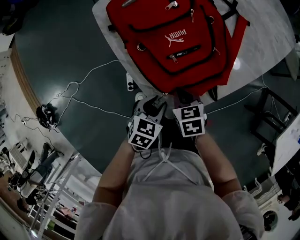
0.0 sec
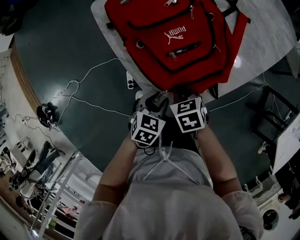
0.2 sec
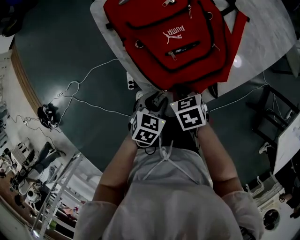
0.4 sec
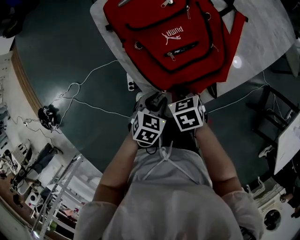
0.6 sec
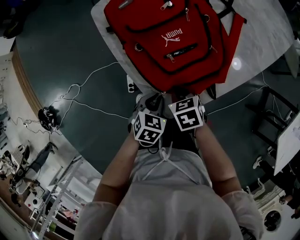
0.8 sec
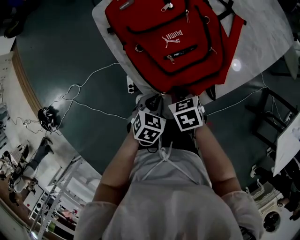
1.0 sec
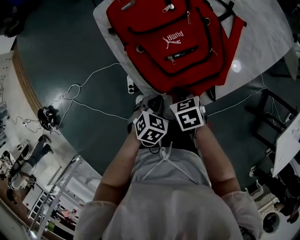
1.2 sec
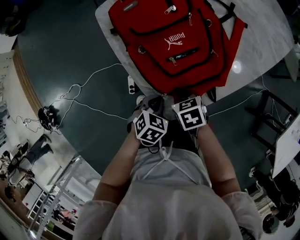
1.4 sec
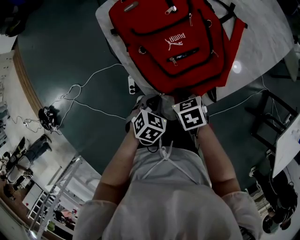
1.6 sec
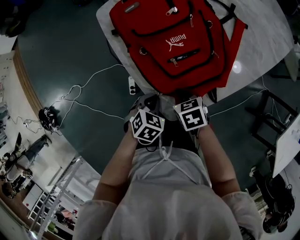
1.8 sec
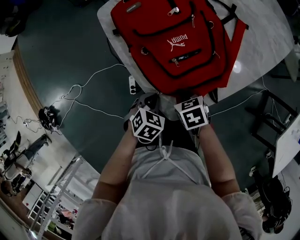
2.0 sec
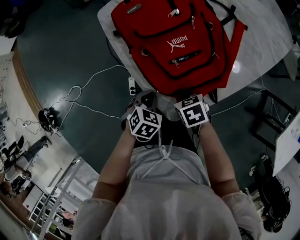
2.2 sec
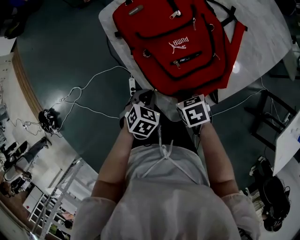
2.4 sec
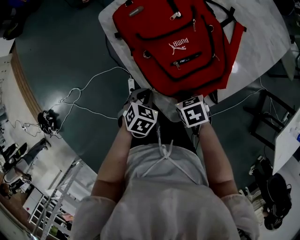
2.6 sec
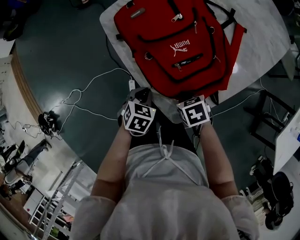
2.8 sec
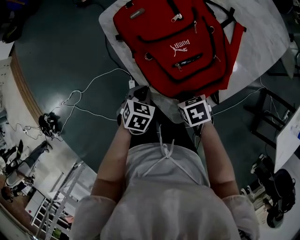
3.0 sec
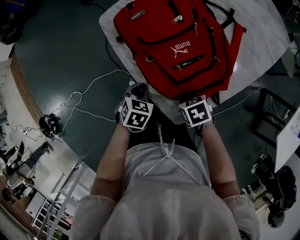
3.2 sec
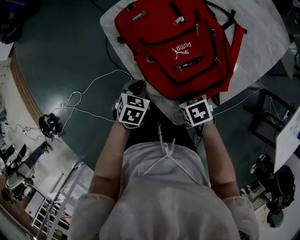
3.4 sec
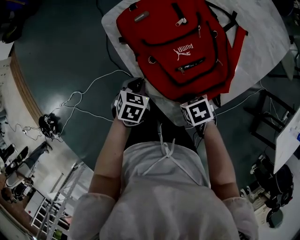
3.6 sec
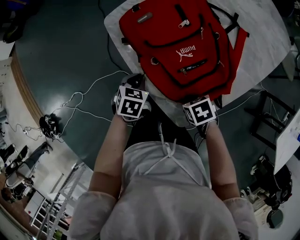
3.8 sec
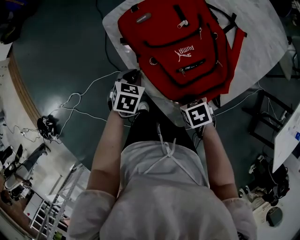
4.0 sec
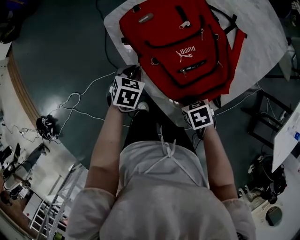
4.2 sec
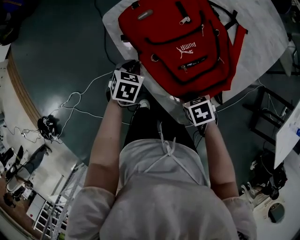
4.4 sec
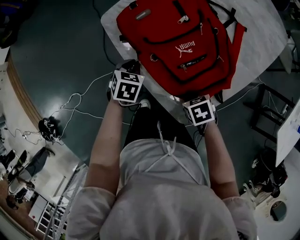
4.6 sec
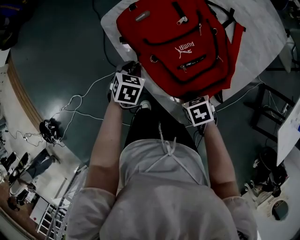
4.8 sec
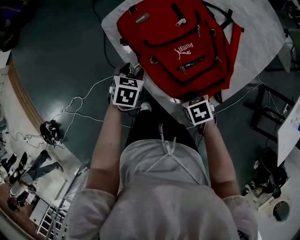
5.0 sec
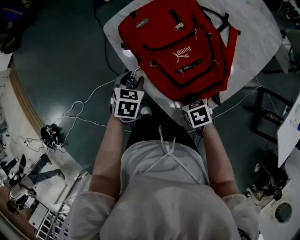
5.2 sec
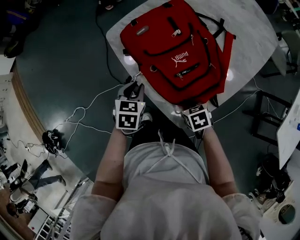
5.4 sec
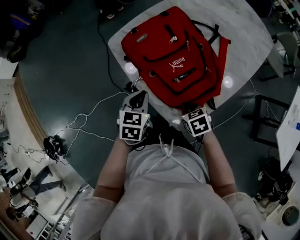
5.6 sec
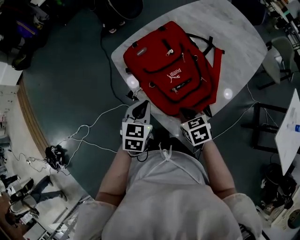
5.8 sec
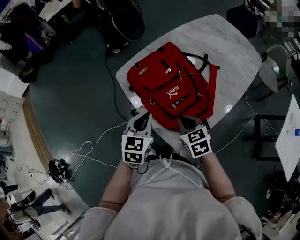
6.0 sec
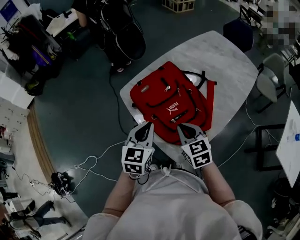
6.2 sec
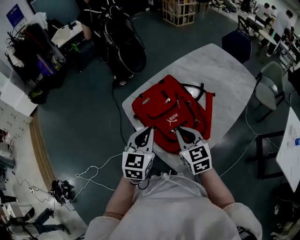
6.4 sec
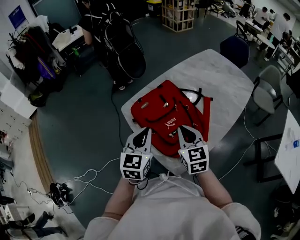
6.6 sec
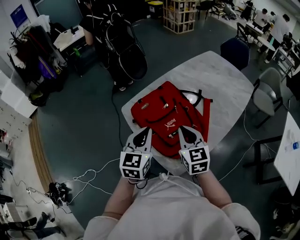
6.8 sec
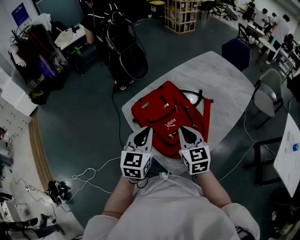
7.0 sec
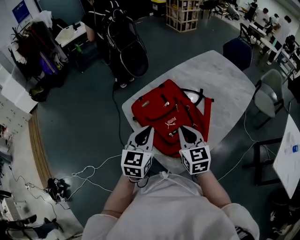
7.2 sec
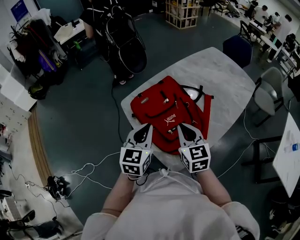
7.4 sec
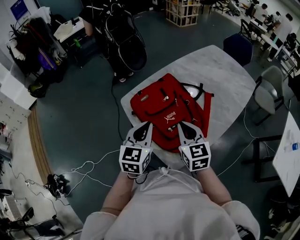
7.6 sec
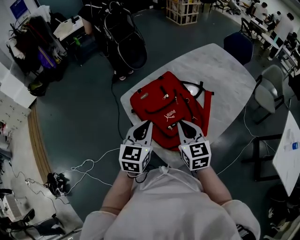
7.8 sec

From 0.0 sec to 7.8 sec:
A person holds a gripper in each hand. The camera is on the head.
From 0.0 sec to 1.6 sec: The left gripper closes up.
From 1.6 sec to 3.2 sec: The left gripper moves forward and to the left, some 10 cm.
From 3.2 sec to 4.6 sec: The left gripper ends up approximately 10 cm from where it was.
From 4.6 sec to 6.2 sec: Both grippers travel together upward, roughly 25 cm. The right gripper points its fingers approximately 40 degrees further upward; the left gripper tips its fingers upward by some 30 degrees, and opens, then closes again.
From 6.2 sec to 7.8 sec: The right gripper heads upward, covering about 5 cm.

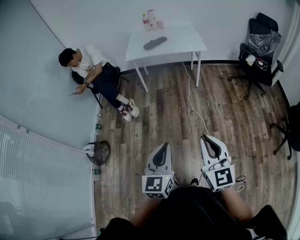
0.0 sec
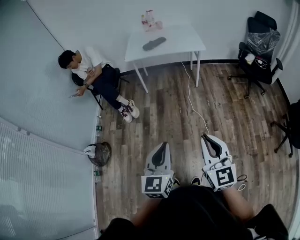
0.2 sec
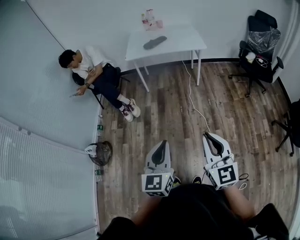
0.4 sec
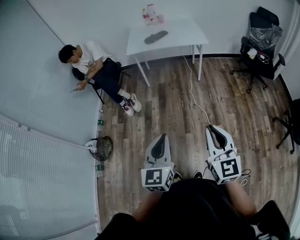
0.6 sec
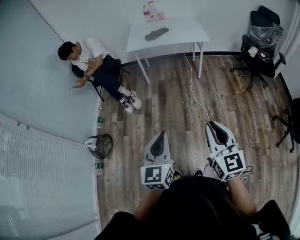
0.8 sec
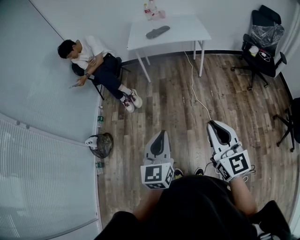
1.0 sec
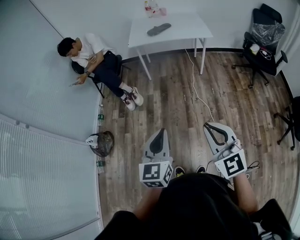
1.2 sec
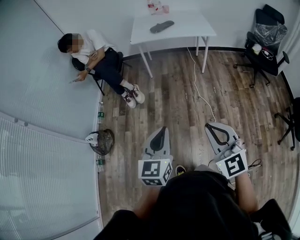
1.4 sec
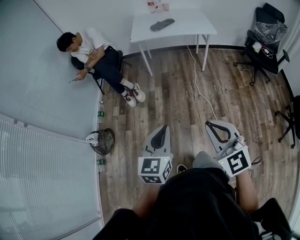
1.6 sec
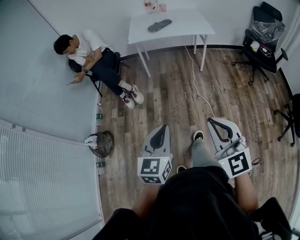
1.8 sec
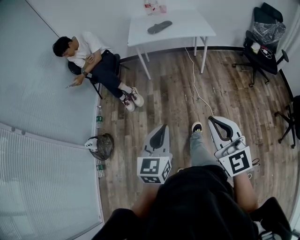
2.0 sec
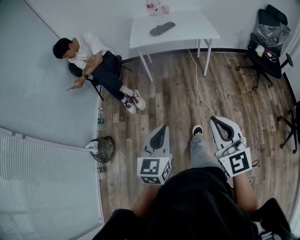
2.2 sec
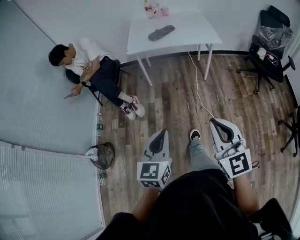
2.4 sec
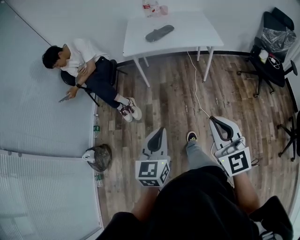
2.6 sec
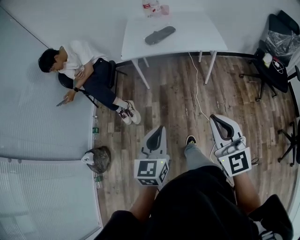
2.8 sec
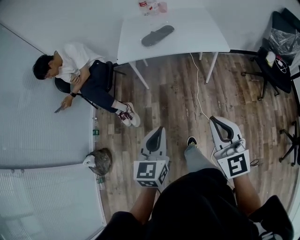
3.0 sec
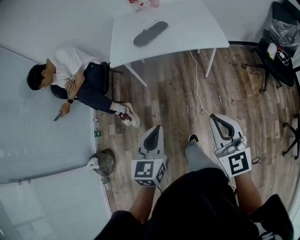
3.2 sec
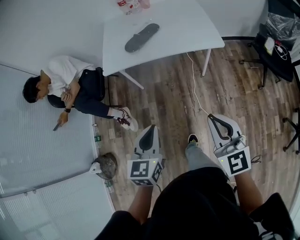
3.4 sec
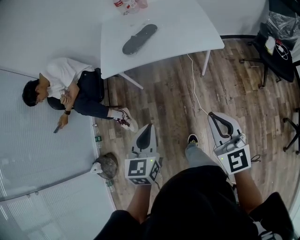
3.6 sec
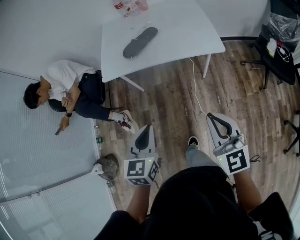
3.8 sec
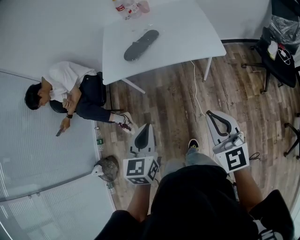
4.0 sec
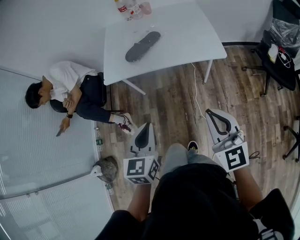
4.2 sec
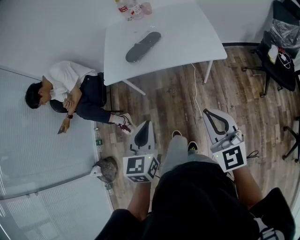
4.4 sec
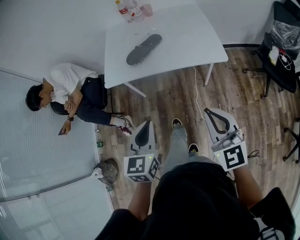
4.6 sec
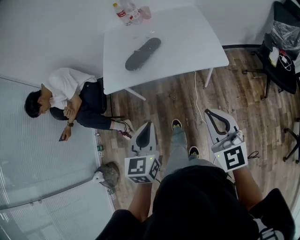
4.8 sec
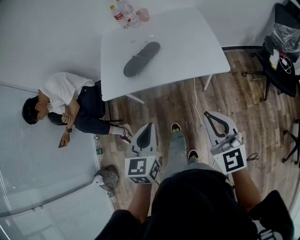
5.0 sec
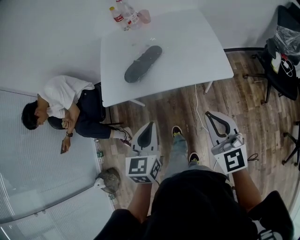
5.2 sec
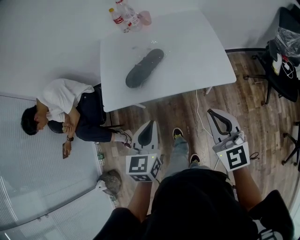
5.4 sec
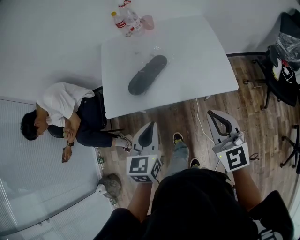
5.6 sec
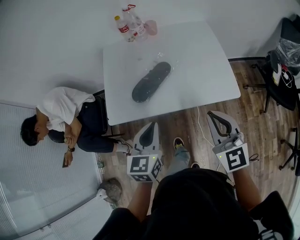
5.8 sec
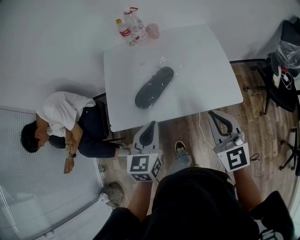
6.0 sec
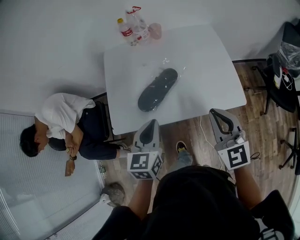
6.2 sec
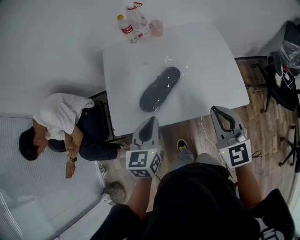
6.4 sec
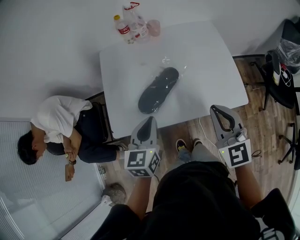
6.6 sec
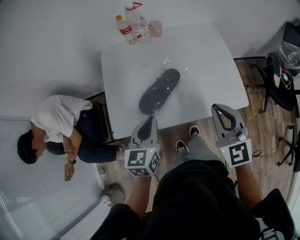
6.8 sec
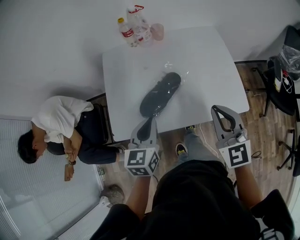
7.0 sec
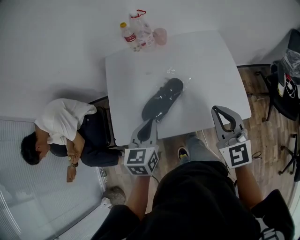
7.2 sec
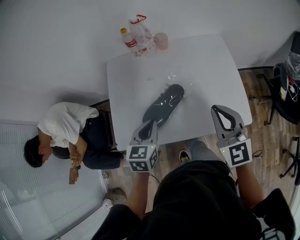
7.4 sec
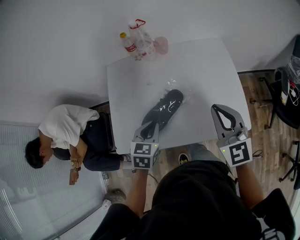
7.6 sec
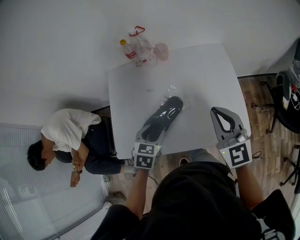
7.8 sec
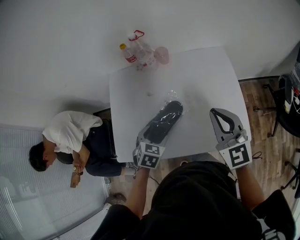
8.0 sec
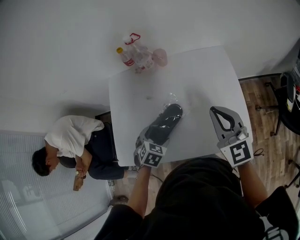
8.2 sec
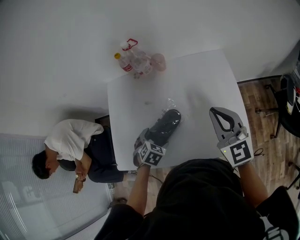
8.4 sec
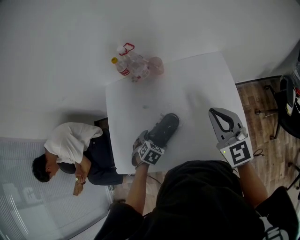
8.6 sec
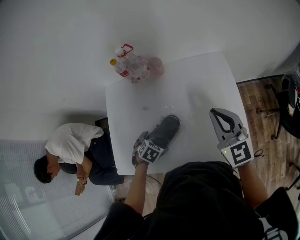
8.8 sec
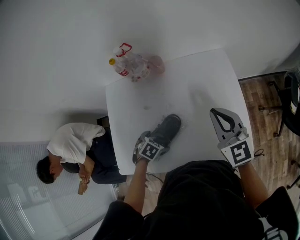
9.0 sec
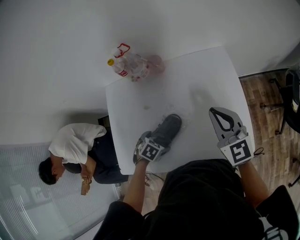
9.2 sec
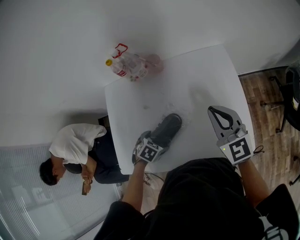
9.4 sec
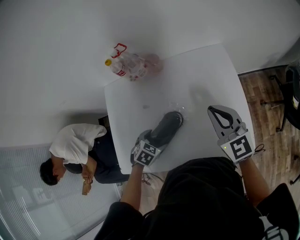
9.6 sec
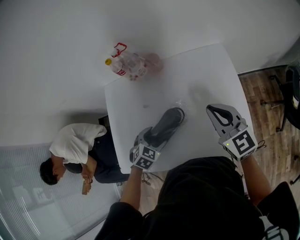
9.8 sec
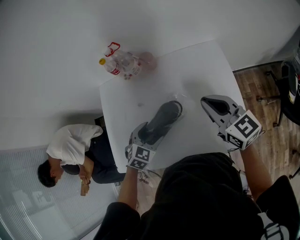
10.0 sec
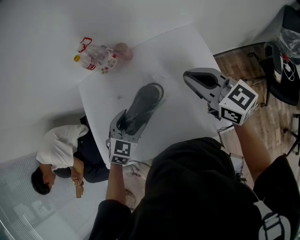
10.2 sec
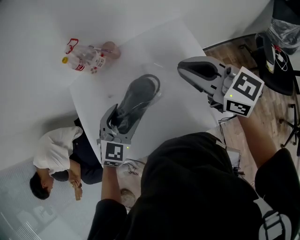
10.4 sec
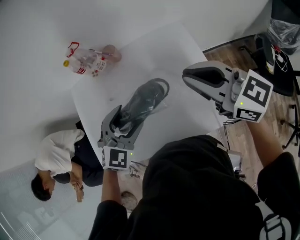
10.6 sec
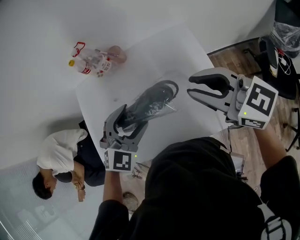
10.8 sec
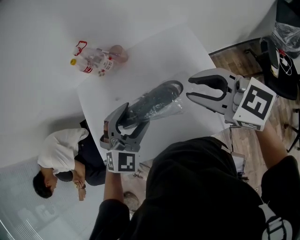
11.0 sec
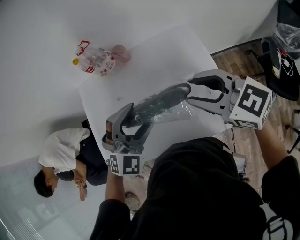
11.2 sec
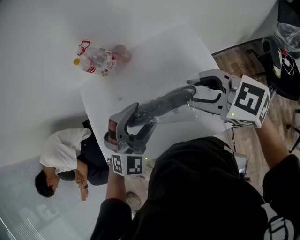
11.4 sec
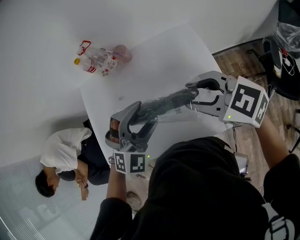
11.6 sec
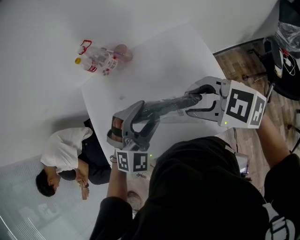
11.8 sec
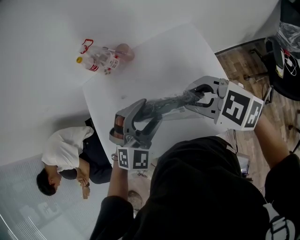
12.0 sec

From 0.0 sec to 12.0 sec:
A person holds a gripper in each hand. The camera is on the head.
From 0.0 sec to 1.6 sec: The two grippers go approximately 10 cm to the left. The right gripper turns by approximately 30 degrees.
From 1.6 sec to 3.0 sec: The two grippers go about 40 cm forward.
From 3.0 sec to 4.4 sec: The left gripper goes about 20 cm forward. The right gripper shifts some 20 cm forward and to the right.
From 4.4 sec to 6.0 sec: Both grippers move forward, about 30 cm.
From 6.0 sec to 7.6 sec: The right gripper moves forward, roughly 20 cm. Meanwhile the left gripper travels forward and downward by about 20 cm, and swivels approximately 20 degrees.
From 7.6 sec to 9.0 sec: The left gripper is displaced downward by approximately 15 cm, angles its fingers downward, by approximately 40 degrees, and opens up. Meanwhile the right gripper changes place by about 15 cm.
From 9.0 sec to 10.4 sec: The left gripper is displaced upward by approximately 20 cm, and points its fingers approximately 40 degrees further upward; the right gripper is displaced upward by approximately 5 cm, and rotates some 30 degrees.
From 10.4 sec to 12.0 sec: The right gripper heads to the left and backward, covering some 10 cm, and swivels approximately 40 degrees. The left gripper goes about 5 cm to the right, and swivels about 30 degrees.

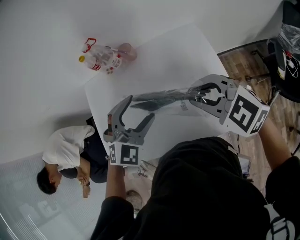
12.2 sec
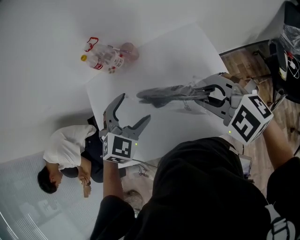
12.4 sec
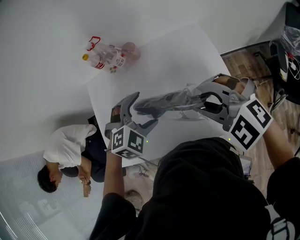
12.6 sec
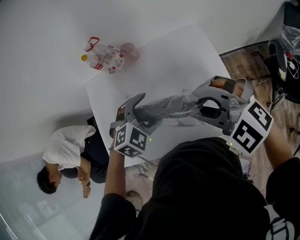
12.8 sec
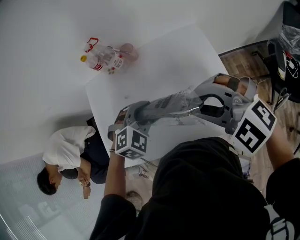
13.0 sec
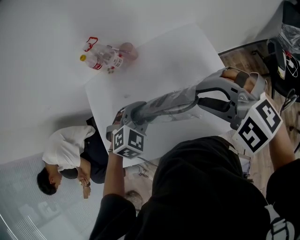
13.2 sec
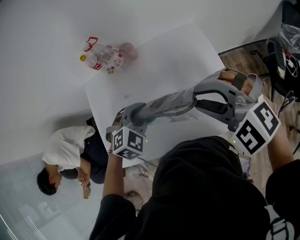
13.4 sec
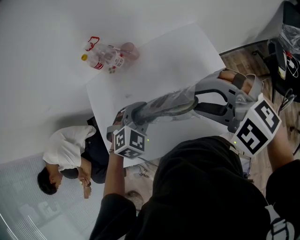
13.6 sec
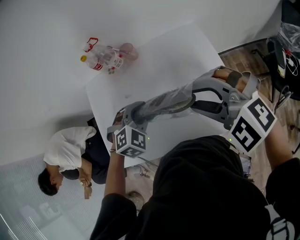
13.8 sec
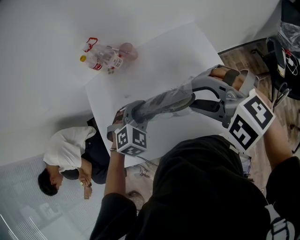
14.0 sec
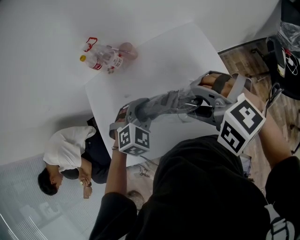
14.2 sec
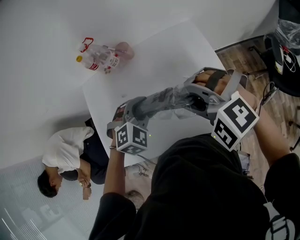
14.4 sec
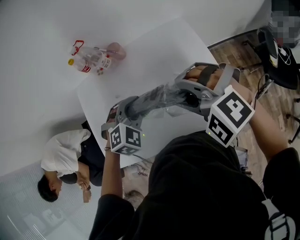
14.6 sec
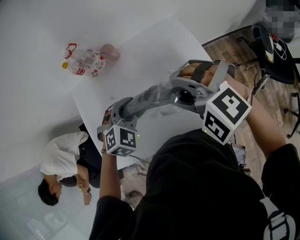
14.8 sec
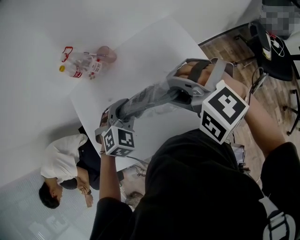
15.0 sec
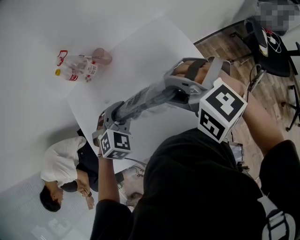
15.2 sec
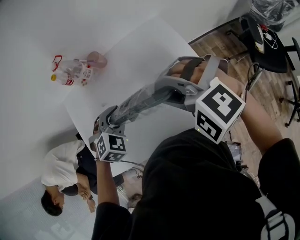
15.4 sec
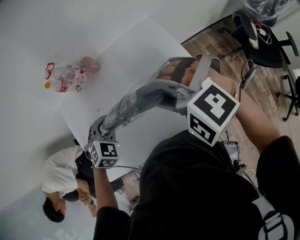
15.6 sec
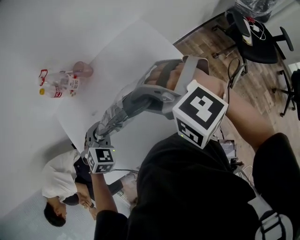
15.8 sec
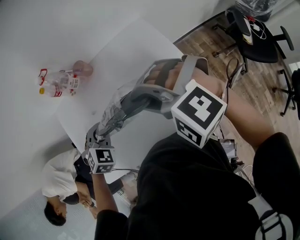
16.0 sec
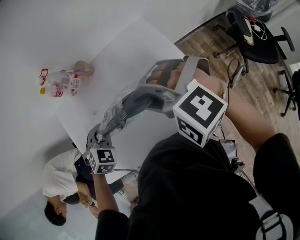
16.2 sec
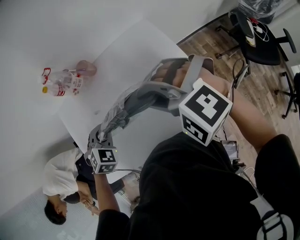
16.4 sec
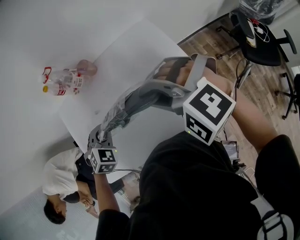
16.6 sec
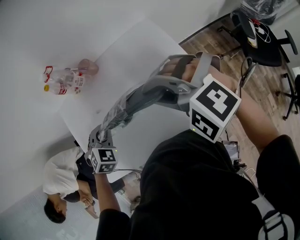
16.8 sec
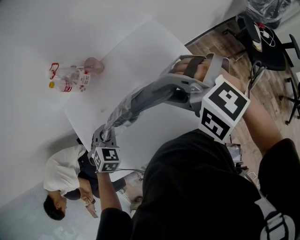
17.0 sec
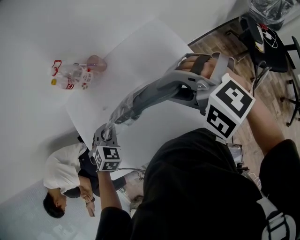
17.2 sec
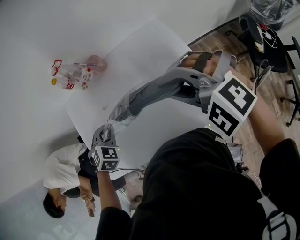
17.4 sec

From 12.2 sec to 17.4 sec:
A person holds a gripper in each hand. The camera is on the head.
From 12.2 sec to 14.0 sec: The left gripper moves downward, some 5 cm, changes its angle by approximately 20 degrees, and closes its fingers; the right gripper rotates about 30 degrees.
From 14.0 sec to 15.6 sec: The grippers stay close to where they were, moving slightly.
From 15.6 sec to 17.4 sec: The left gripper goes approximately 5 cm to the left.
